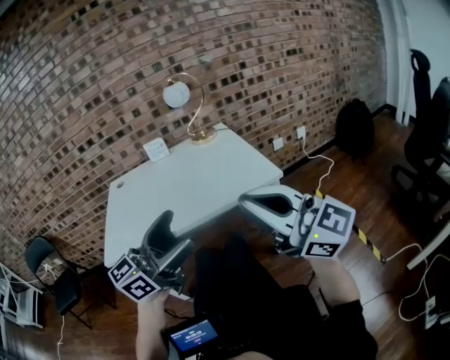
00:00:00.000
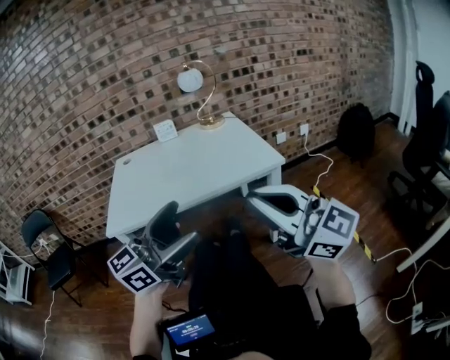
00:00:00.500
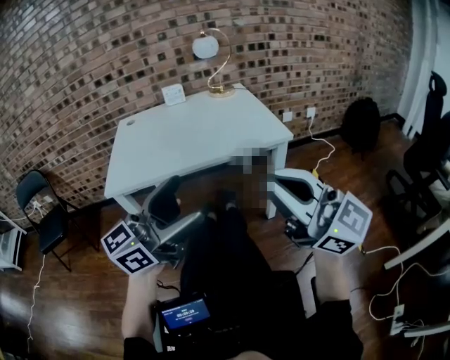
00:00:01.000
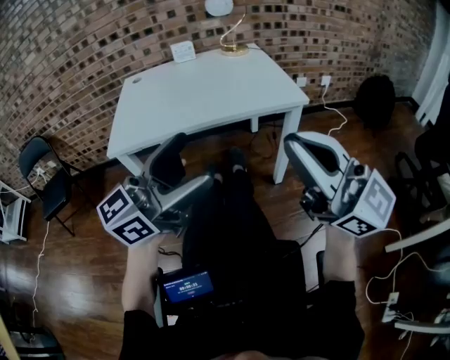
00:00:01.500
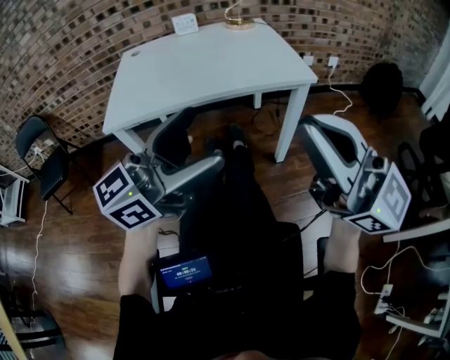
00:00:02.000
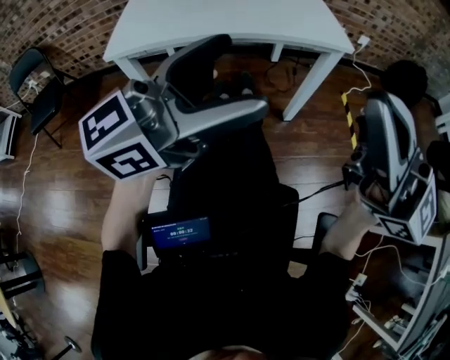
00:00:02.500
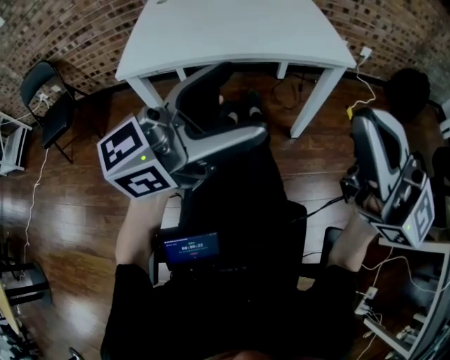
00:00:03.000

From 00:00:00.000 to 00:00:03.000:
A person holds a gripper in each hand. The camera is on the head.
From 00:00:00.000 to 00:00:01.500: The grippers both shift backward by some 10 cm.
From 00:00:01.500 to 00:00:03.000: The grippers move only a little.

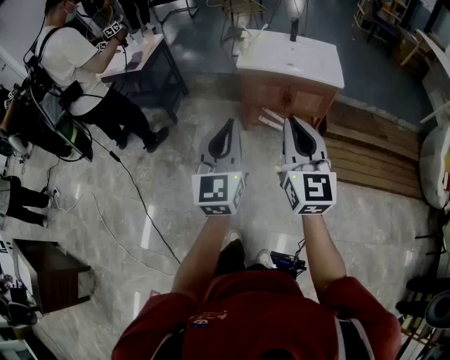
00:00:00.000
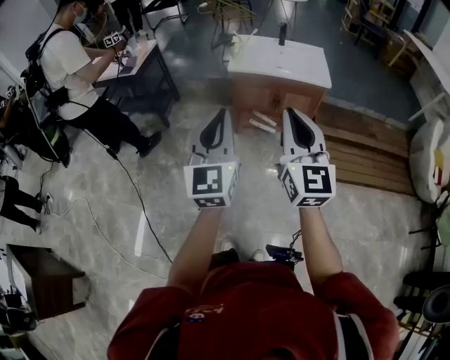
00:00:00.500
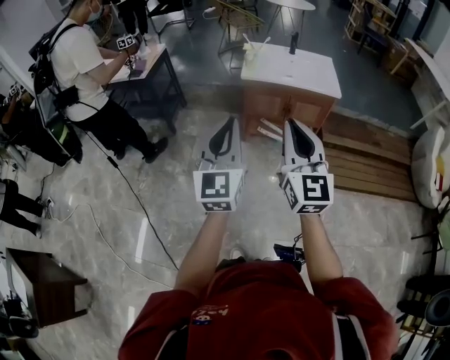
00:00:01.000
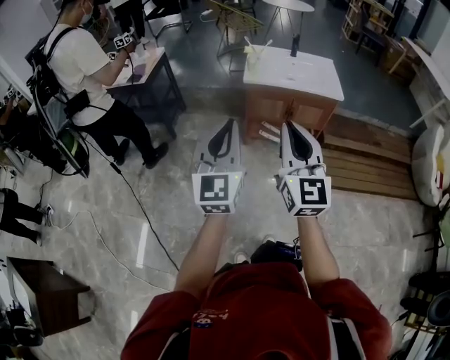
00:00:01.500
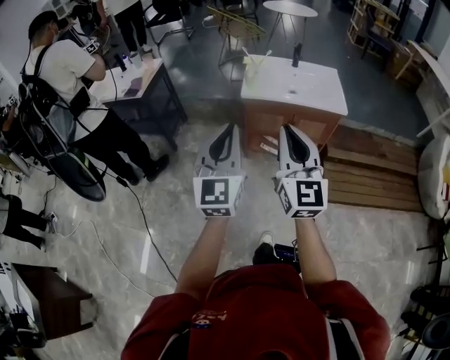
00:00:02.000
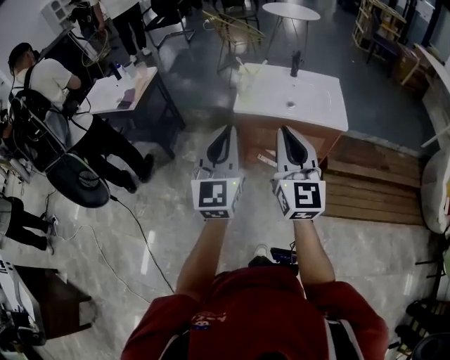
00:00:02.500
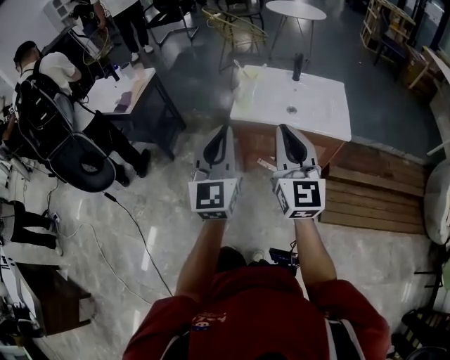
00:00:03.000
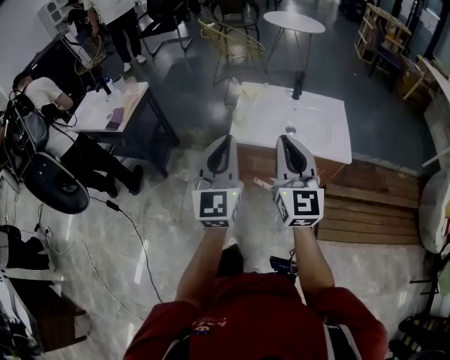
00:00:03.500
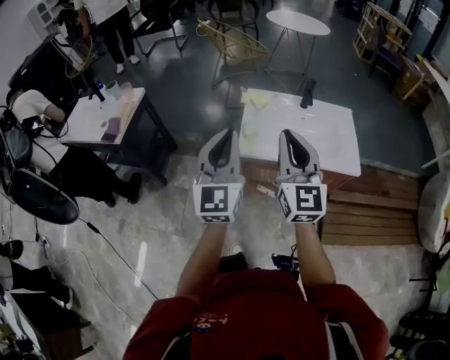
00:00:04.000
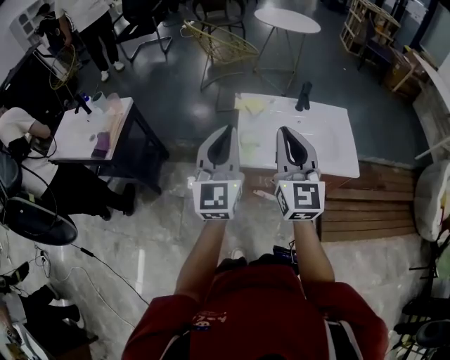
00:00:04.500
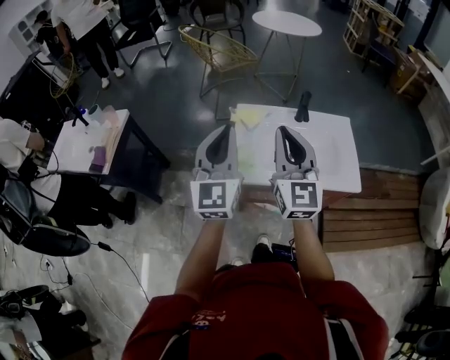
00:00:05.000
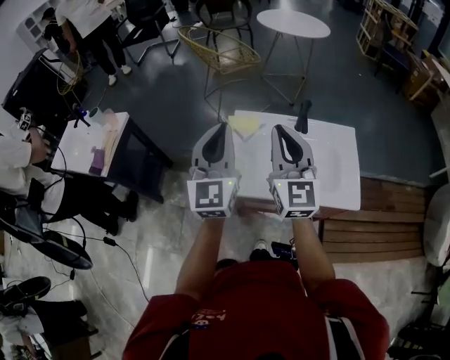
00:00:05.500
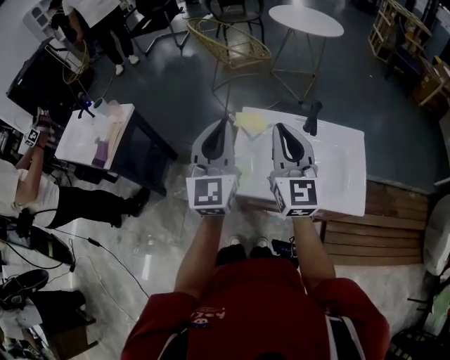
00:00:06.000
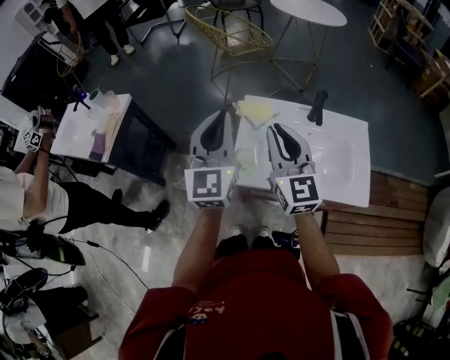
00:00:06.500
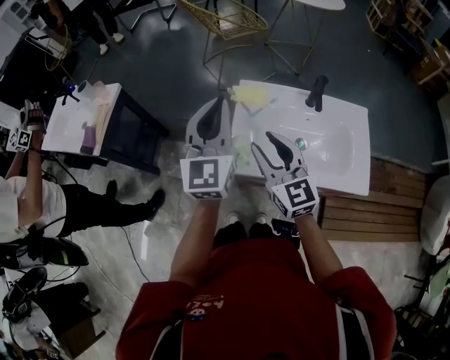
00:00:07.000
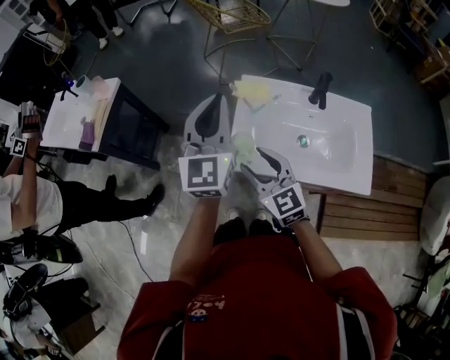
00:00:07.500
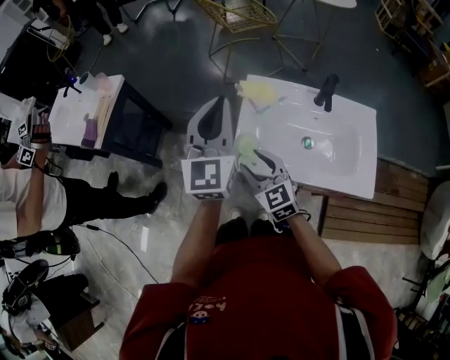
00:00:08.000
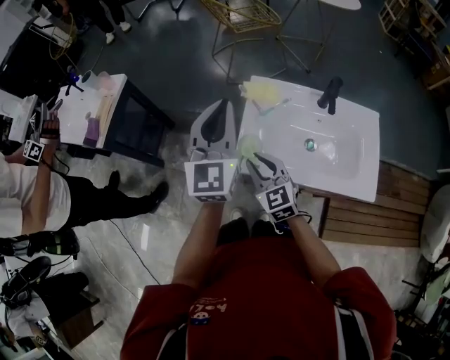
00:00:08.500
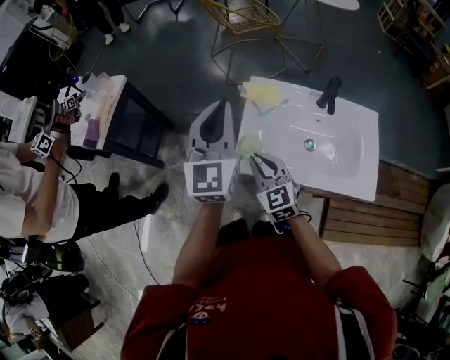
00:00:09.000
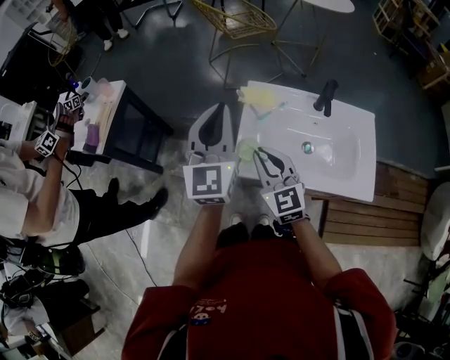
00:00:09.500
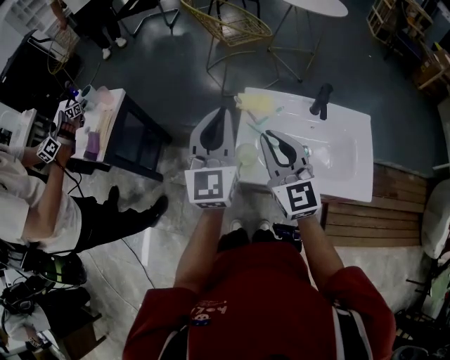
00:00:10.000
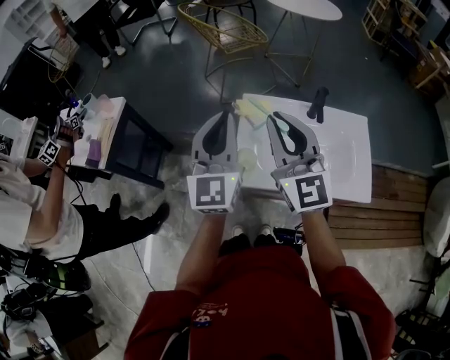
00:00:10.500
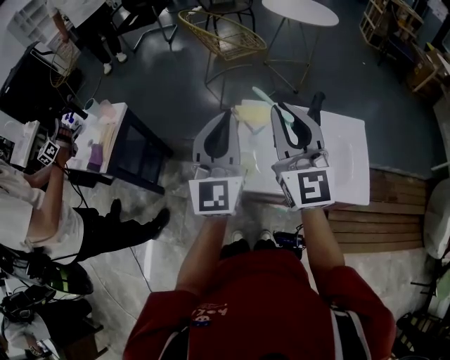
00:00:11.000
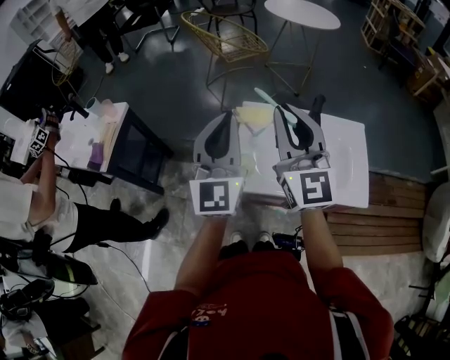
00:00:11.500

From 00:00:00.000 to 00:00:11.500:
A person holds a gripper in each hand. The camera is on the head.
From 00:00:00.000 to 00:00:02.000: The left gripper moves forward, roughly 10 cm; the right gripper moves forward and to the left, roughly 10 cm.
From 00:00:02.000 to 00:00:04.000: The two grippers go some 35 cm forward.
From 00:00:04.000 to 00:00:06.000: Both grippers move forward, roughly 20 cm.
From 00:00:06.000 to 00:00:07.500: The right gripper travels downward and to the left by roughly 20 cm, swivels approximately 30 degrees, and opens up. Meanwhile the left gripper ends up roughly 5 cm from where it was.
From 00:00:07.500 to 00:00:09.500: The right gripper closes its fingers.
From 00:00:09.500 to 00:00:11.500: The left gripper is displaced upward by some 5 cm, while the right gripper goes approximately 20 cm upward, and changes its angle by about 30 degrees.

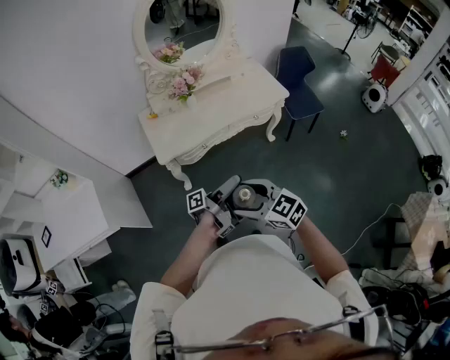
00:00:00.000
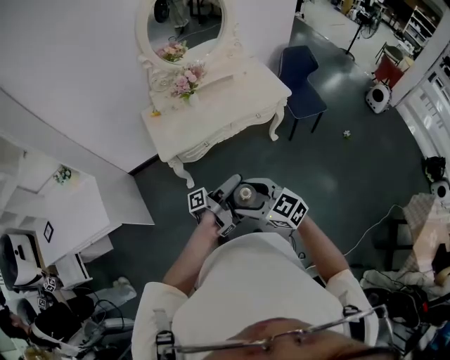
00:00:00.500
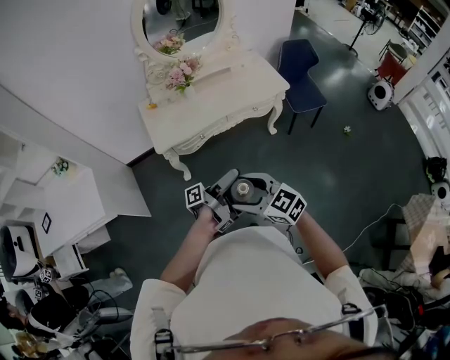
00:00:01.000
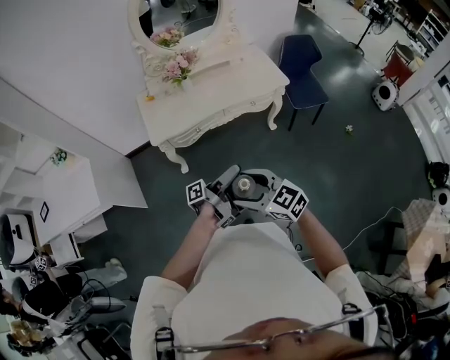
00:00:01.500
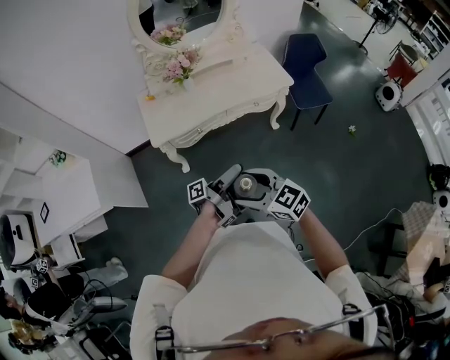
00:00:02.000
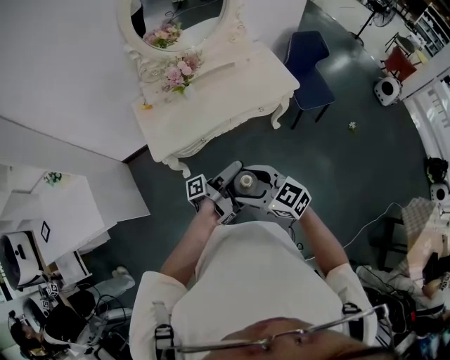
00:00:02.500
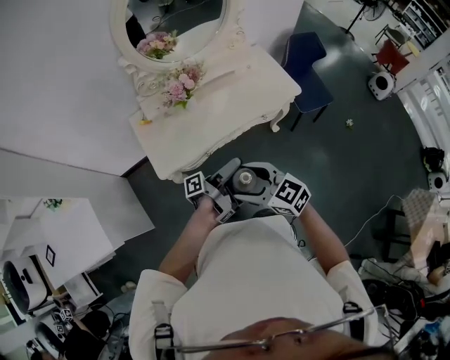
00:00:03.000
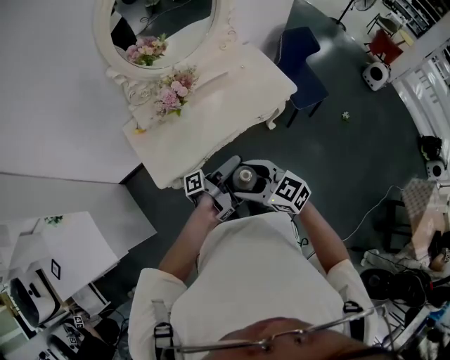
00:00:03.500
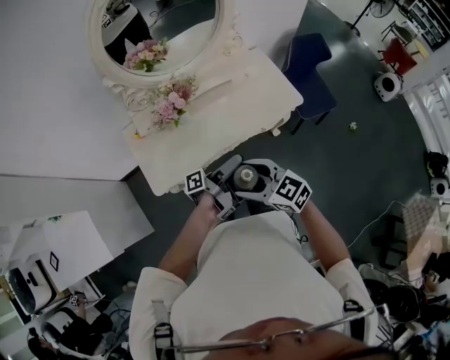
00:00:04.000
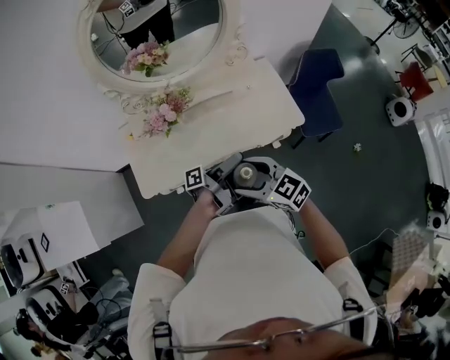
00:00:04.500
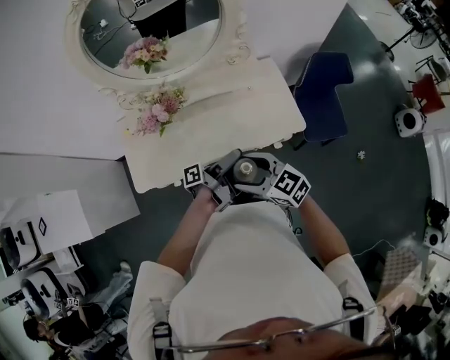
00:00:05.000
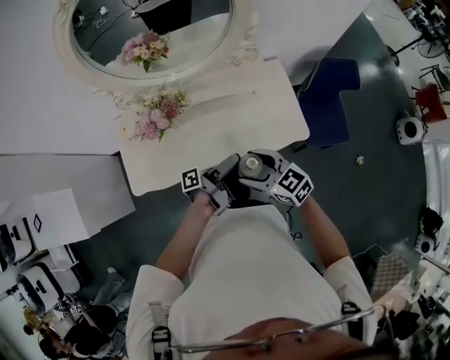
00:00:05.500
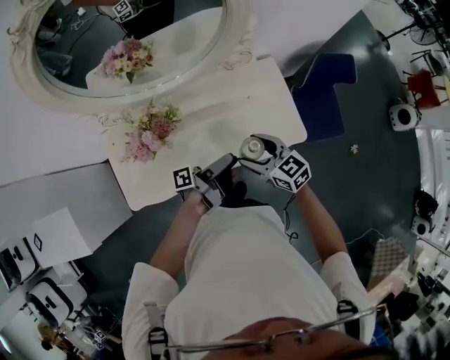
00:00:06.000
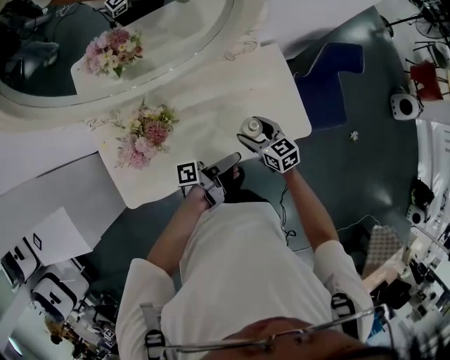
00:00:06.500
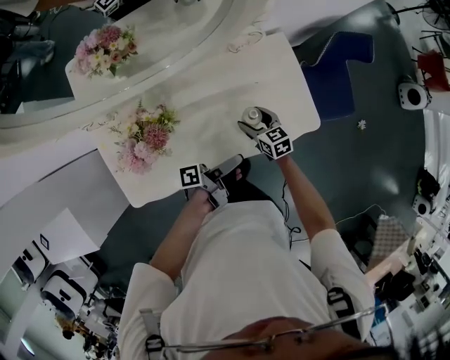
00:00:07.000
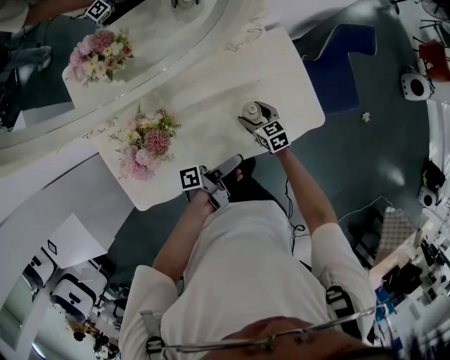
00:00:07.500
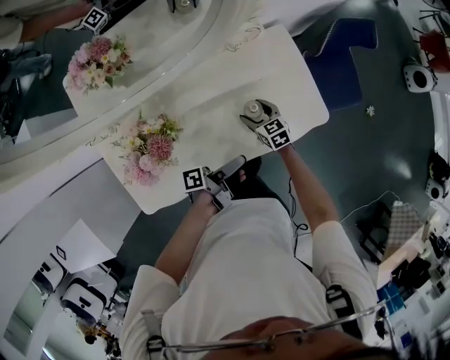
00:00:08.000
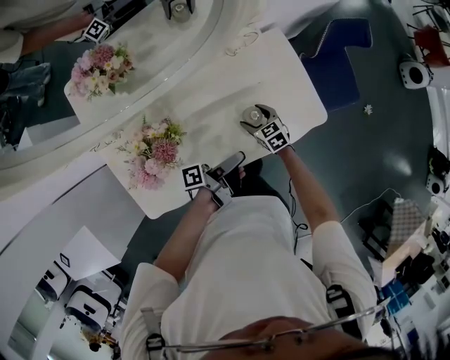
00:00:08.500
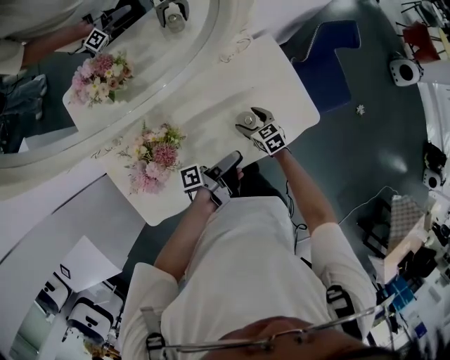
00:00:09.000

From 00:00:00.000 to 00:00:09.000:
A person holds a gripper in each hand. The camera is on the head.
From 00:00:00.000 to 00:00:02.000: The right gripper changes place by roughly 10 cm.
From 00:00:02.000 to 00:00:04.500: The right gripper moves some 40 cm.
From 00:00:04.500 to 00:00:07.000: The right gripper moves approximately 40 cm, and turns by roughly 30 degrees.

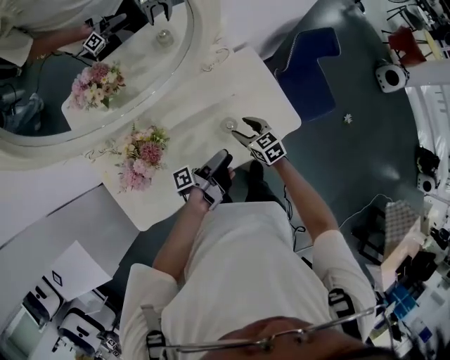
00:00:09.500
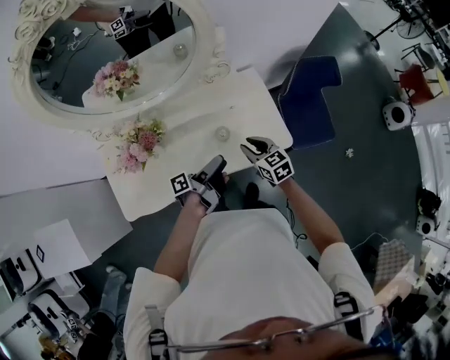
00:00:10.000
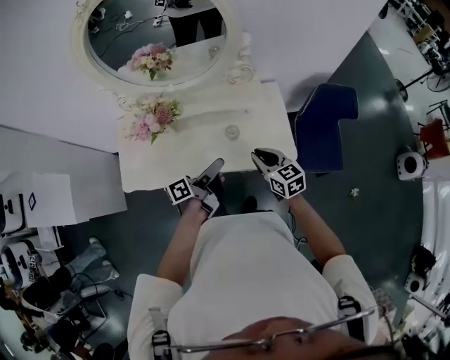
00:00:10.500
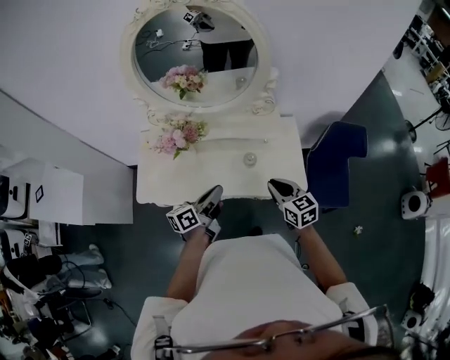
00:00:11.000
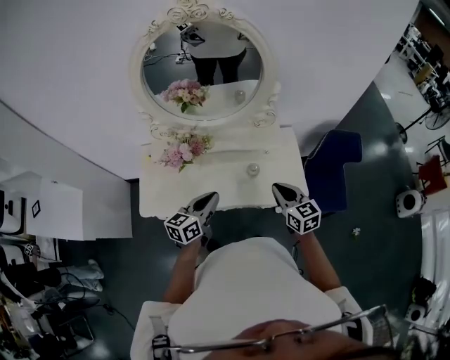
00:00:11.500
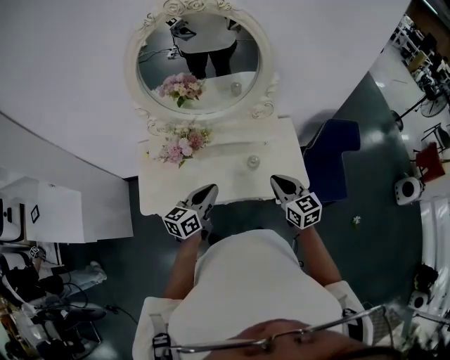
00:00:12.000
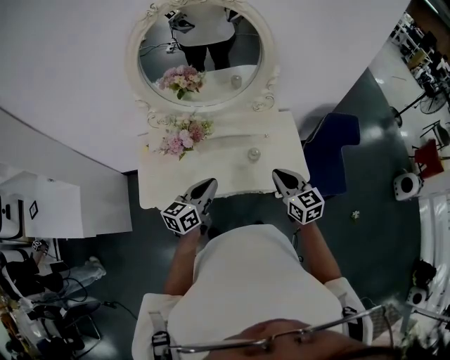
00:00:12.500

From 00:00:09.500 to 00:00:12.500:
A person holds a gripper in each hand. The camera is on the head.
From 00:00:09.500 to 00:00:11.000: The right gripper travels upward by some 20 cm, rotates some 20 degrees, and closes.
From 00:00:11.000 to 00:00:12.500: The right gripper moves upward, roughly 5 cm.
